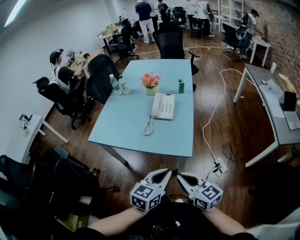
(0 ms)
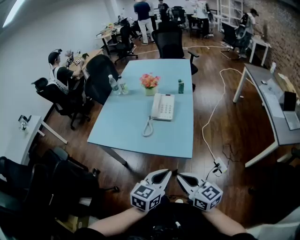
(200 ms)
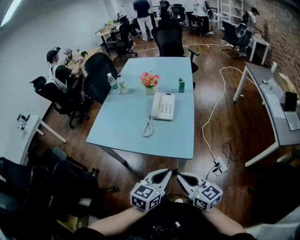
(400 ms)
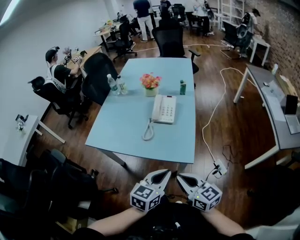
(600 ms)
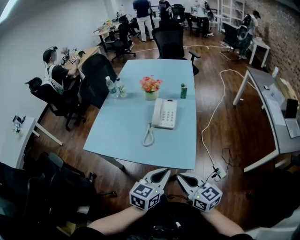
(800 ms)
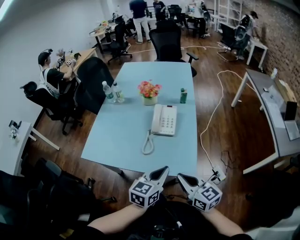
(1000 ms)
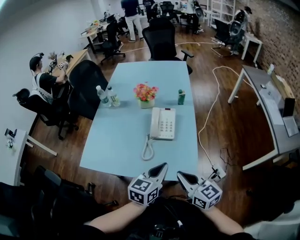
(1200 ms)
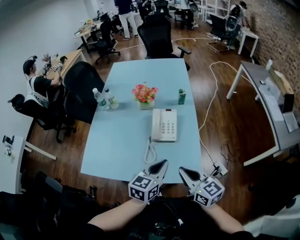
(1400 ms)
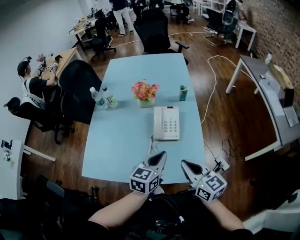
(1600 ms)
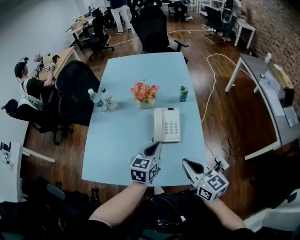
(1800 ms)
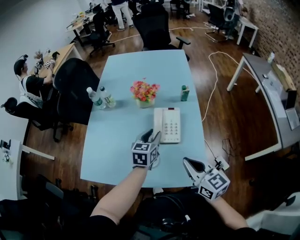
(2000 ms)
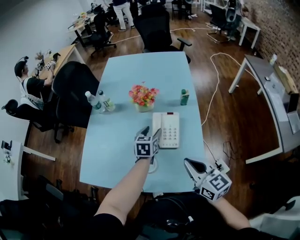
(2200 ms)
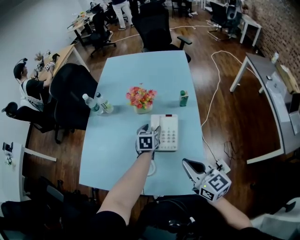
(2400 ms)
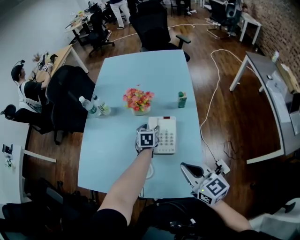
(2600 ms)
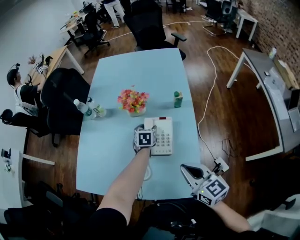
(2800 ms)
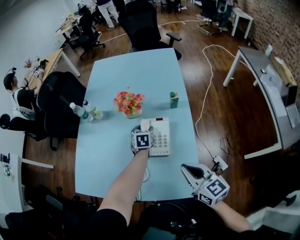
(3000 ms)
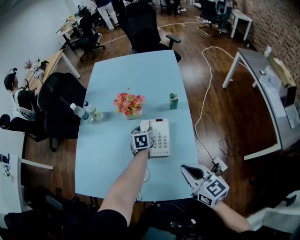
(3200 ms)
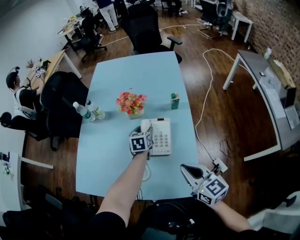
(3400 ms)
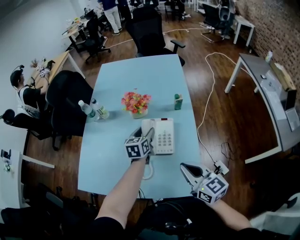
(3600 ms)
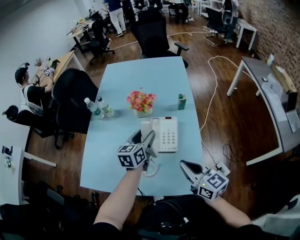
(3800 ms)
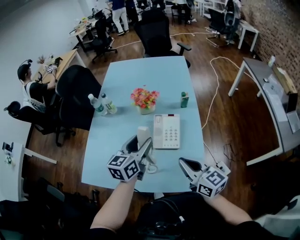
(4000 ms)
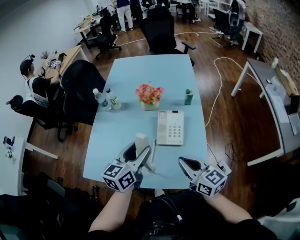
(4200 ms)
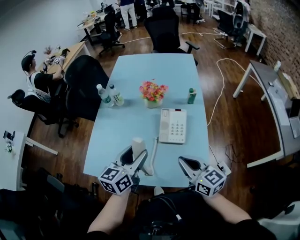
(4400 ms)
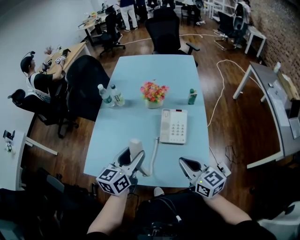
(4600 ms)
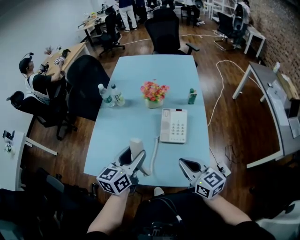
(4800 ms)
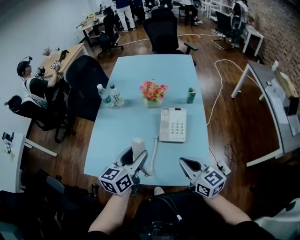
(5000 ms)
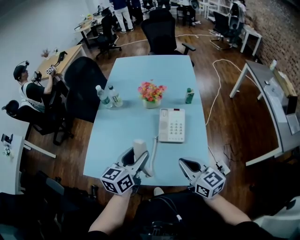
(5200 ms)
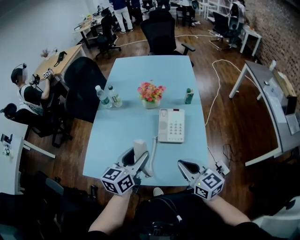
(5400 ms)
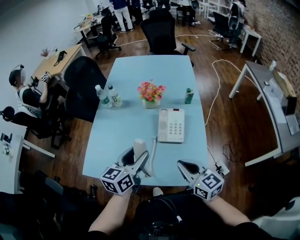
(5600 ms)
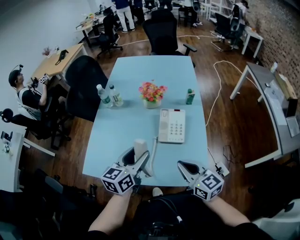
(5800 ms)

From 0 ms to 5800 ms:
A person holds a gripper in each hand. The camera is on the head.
From 0 ms to 1400 ms: The grippers both shift forward by about 25 cm.
From 1400 ms to 2800 ms: The left gripper heads forward and downward, covering some 40 cm, swivels some 30 degrees, and opens its fingers; the right gripper moves forward and to the right, approximately 15 cm.
From 2800 ms to 4400 ms: The left gripper goes roughly 35 cm backward, upward and to the left, and tilts its fingers approximately 30 degrees upward. Meanwhile the right gripper goes some 10 cm to the left.
From 4400 ms to 5800 ms: The grippers make only small movements.

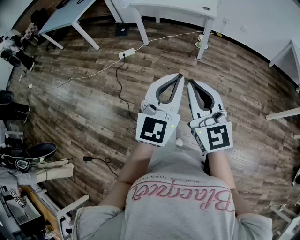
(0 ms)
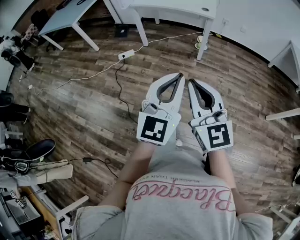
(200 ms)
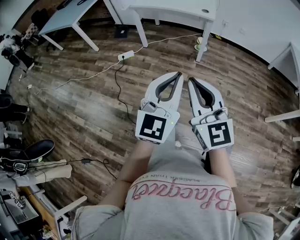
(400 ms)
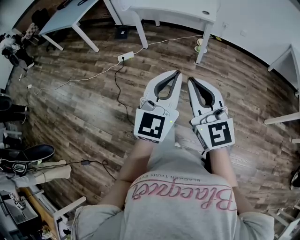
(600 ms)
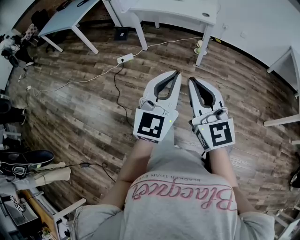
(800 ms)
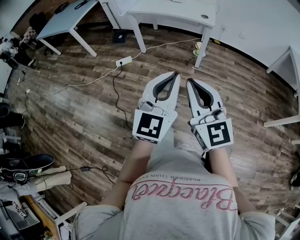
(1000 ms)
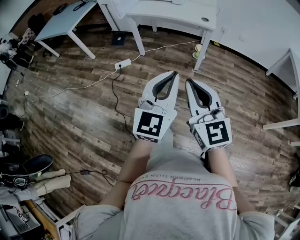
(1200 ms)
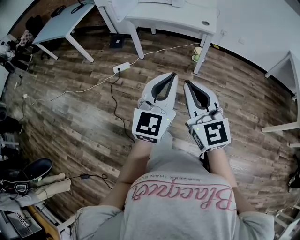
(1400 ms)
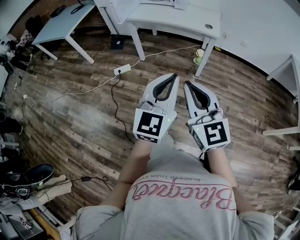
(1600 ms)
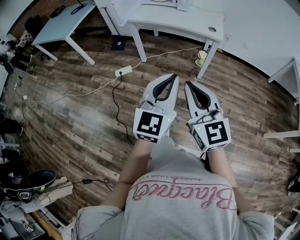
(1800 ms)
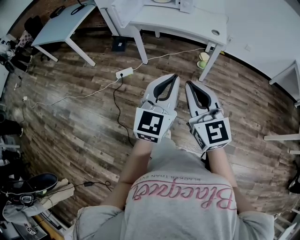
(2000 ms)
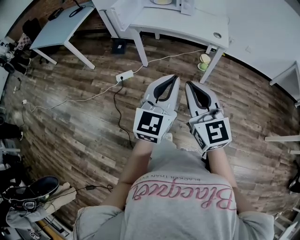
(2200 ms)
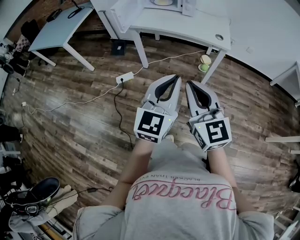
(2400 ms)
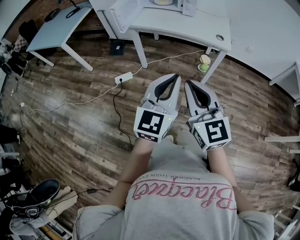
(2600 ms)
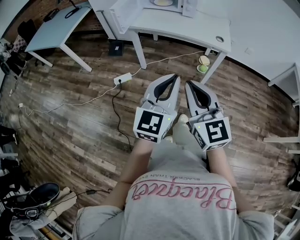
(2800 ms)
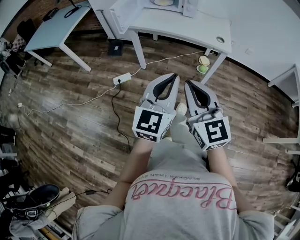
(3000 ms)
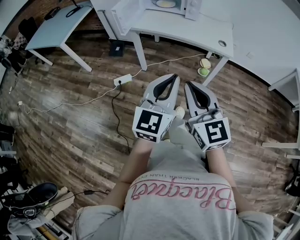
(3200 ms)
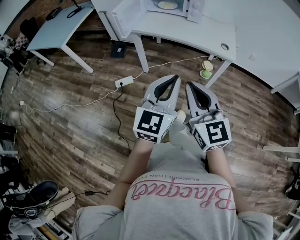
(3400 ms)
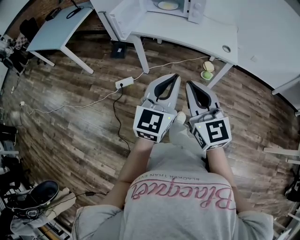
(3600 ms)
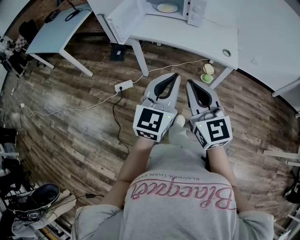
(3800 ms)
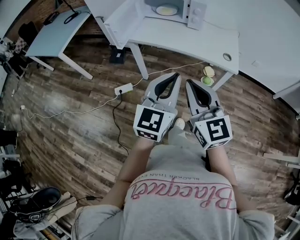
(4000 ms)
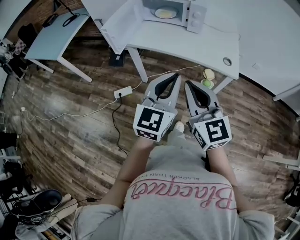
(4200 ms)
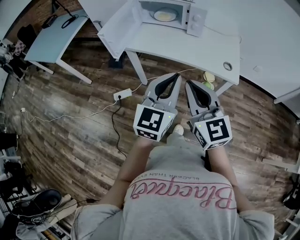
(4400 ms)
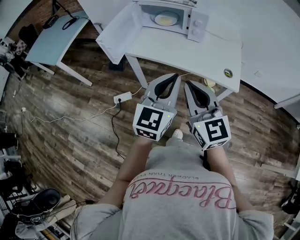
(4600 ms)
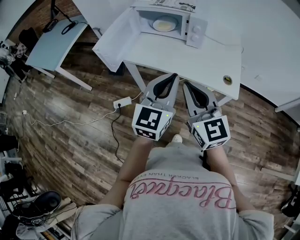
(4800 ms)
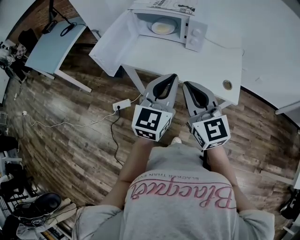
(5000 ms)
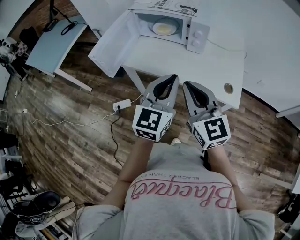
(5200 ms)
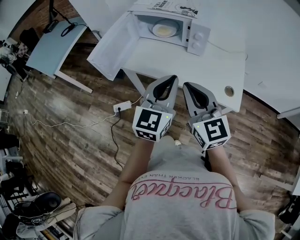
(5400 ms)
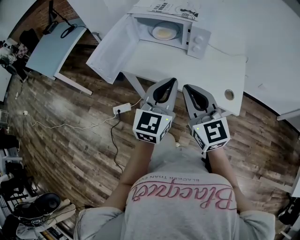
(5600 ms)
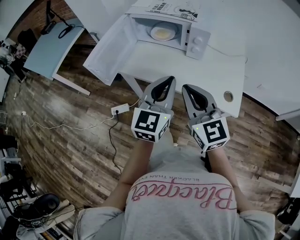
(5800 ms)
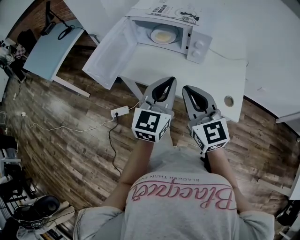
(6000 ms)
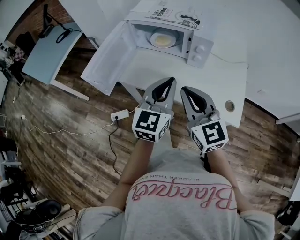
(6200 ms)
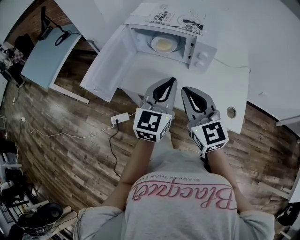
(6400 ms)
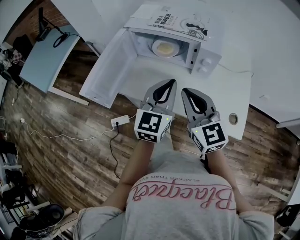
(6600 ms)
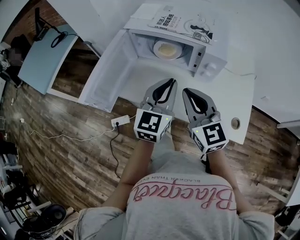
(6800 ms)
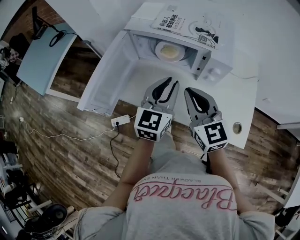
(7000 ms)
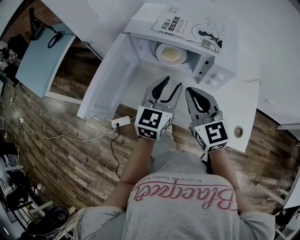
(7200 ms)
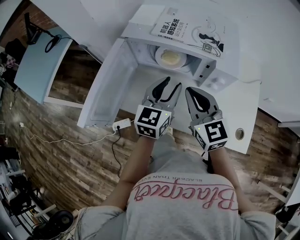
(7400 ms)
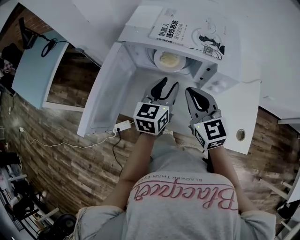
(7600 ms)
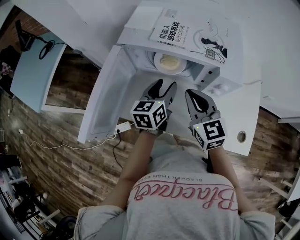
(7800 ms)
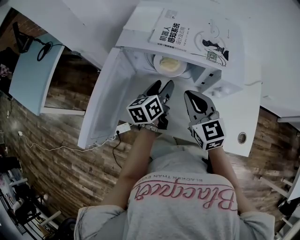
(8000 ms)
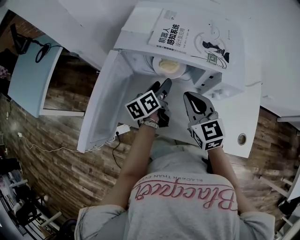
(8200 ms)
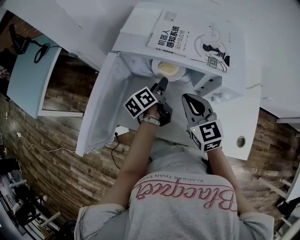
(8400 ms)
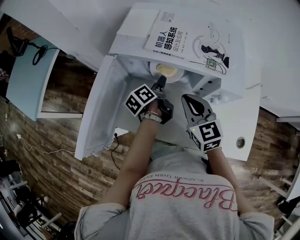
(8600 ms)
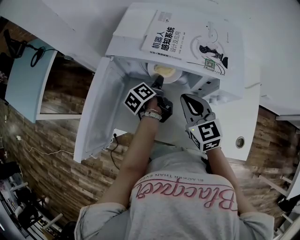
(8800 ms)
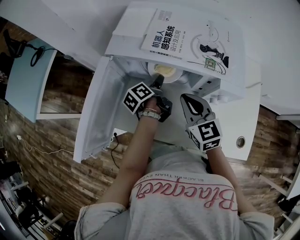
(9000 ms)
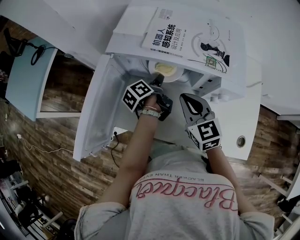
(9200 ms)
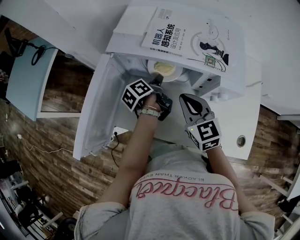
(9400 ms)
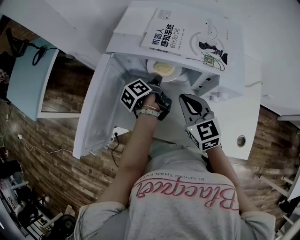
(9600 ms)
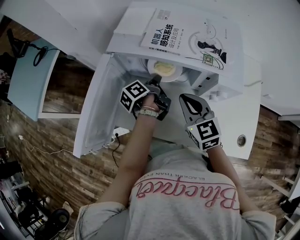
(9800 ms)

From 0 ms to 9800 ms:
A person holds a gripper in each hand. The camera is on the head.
From 0 ms to 1400 ms: Both grippers move forward, roughly 15 cm.
From 1400 ms to 2800 ms: Both grippers travel together forward and to the left, approximately 20 cm.
From 2800 ms to 4200 ms: Both grippers move forward, roughly 20 cm.
From 4200 ms to 5600 ms: Both grippers travel together forward, some 20 cm.
From 5600 ms to 7000 ms: The grippers both shift forward by approximately 20 cm.
From 7000 ms to 8400 ms: The right gripper moves forward and downward, some 15 cm, while the left gripper travels forward and downward by approximately 25 cm, rotates around the line of its fingers by about 60 degrees, counterclockwise from behind, and opens its fingers.
From 8400 ms to 9800 ms: The left gripper closes.

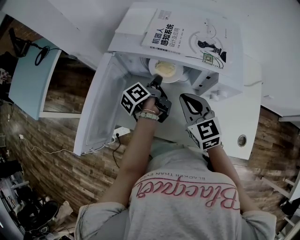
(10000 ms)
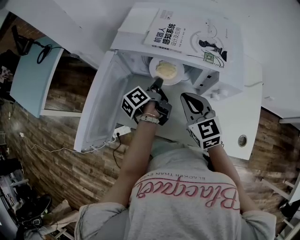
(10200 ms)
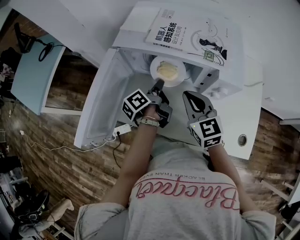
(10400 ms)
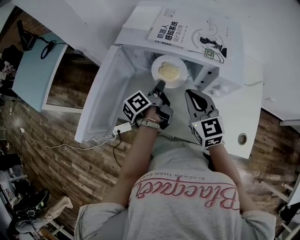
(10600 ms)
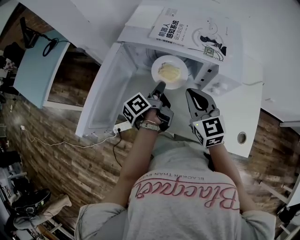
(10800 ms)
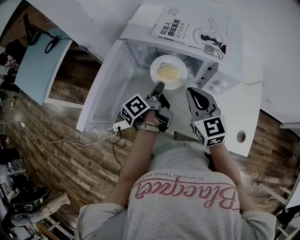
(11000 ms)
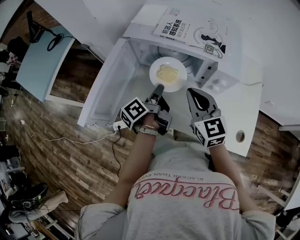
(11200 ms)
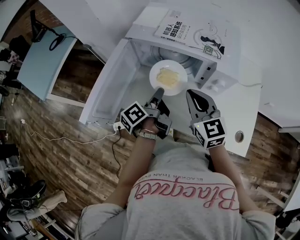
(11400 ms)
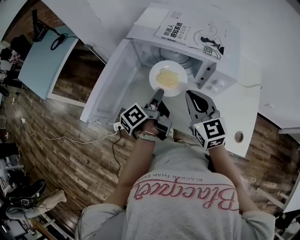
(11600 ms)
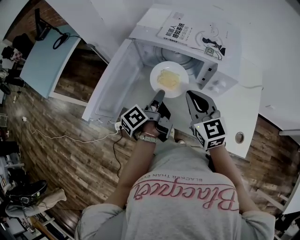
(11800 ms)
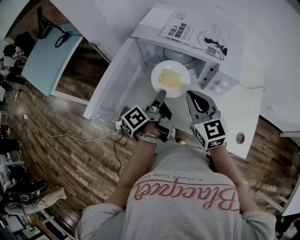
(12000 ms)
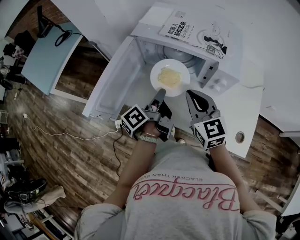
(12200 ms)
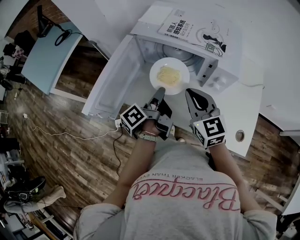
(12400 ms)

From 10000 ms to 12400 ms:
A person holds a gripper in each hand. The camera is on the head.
From 10000 ms to 11200 ms: The right gripper ends up some 5 cm from where it was; the left gripper moves backward and upward, approximately 10 cm.
From 11200 ms to 12400 ms: The left gripper changes place by roughly 5 cm.

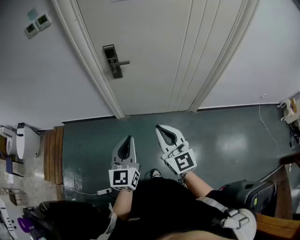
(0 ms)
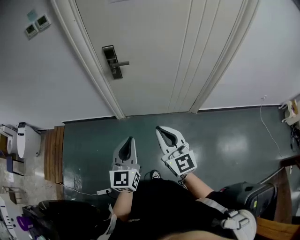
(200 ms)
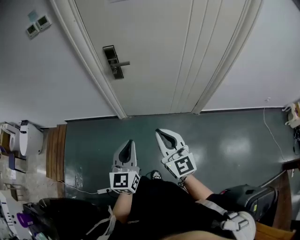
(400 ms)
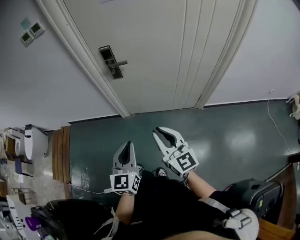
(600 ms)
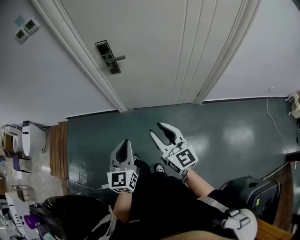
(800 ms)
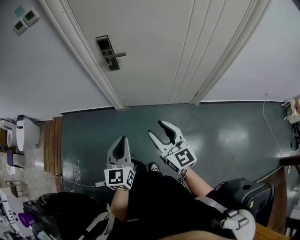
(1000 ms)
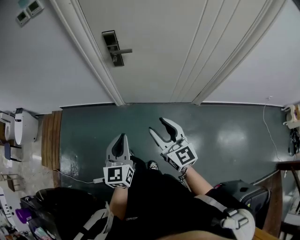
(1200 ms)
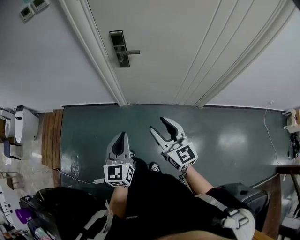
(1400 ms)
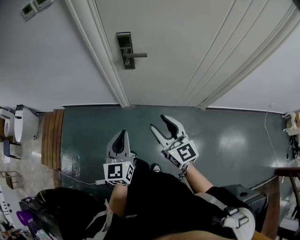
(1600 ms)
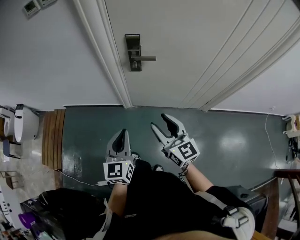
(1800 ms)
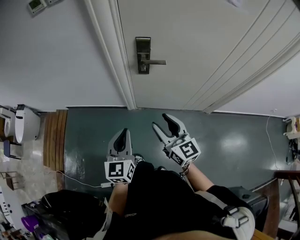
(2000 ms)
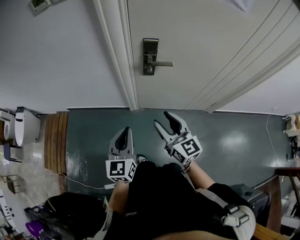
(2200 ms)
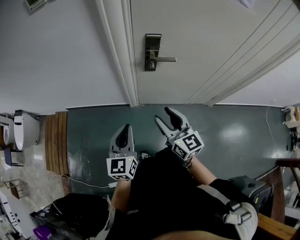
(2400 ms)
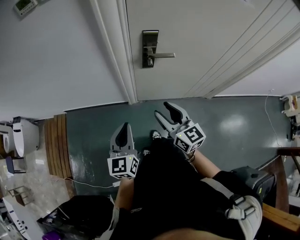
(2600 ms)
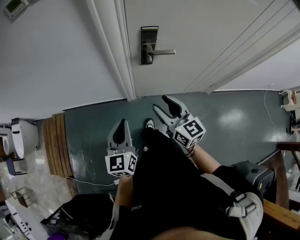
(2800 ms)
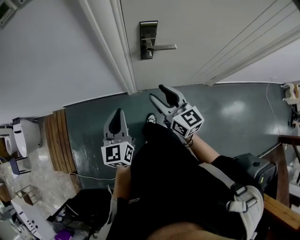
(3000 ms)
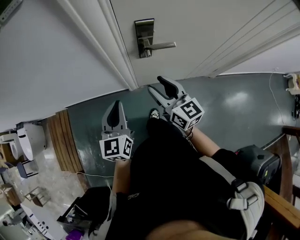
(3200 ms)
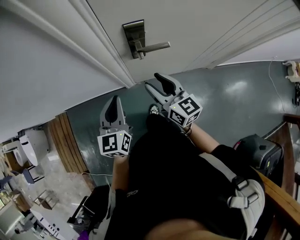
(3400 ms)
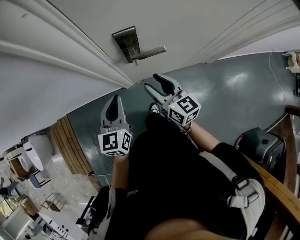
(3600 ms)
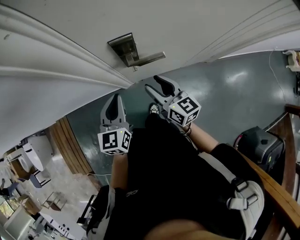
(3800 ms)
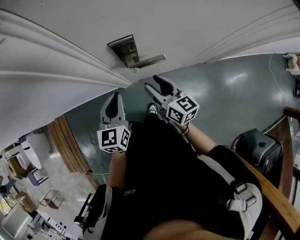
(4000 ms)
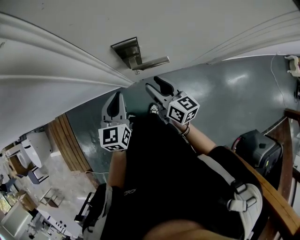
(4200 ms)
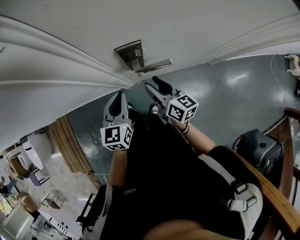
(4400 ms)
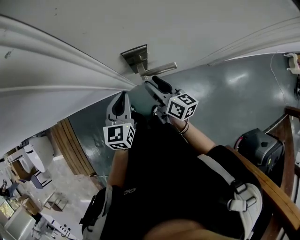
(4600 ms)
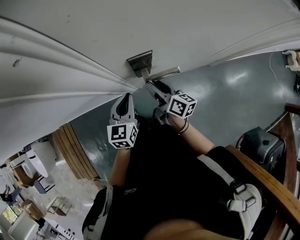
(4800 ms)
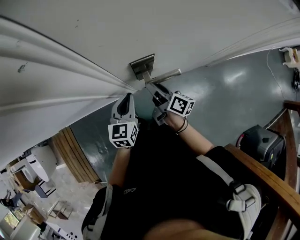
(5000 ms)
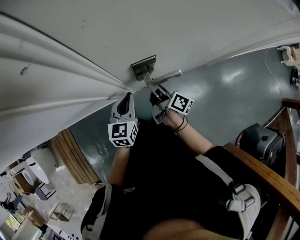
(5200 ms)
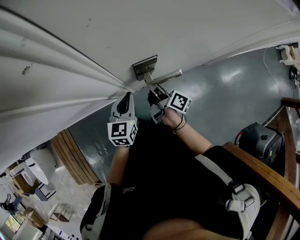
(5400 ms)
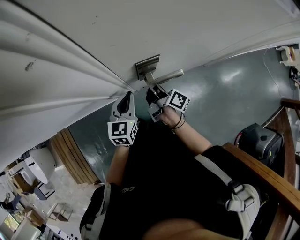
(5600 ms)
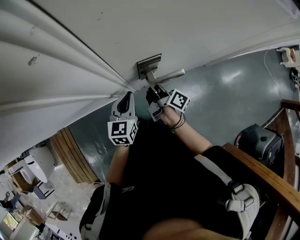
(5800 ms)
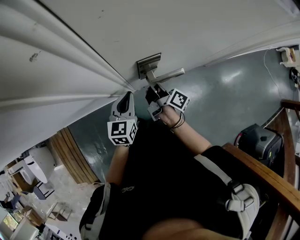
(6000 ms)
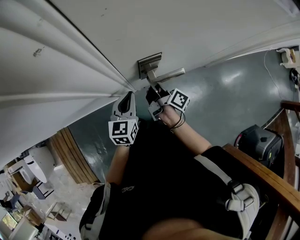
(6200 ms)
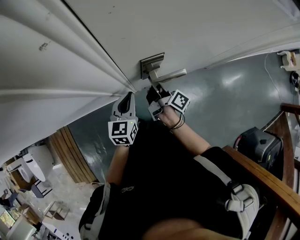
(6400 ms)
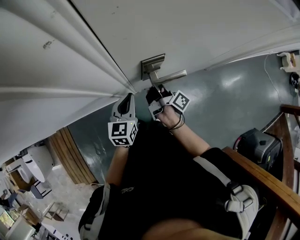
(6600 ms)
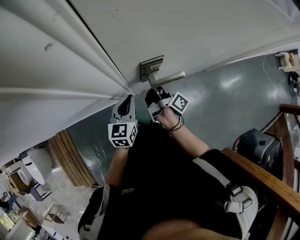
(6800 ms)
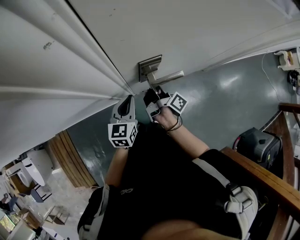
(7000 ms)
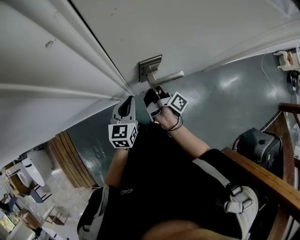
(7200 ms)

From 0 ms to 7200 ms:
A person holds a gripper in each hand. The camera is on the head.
From 0 ms to 1400 ms: The two grippers go some 10 cm forward and downward. The right gripper opens its fingers.
From 1400 ms to 2800 ms: The grippers both shift forward and to the left by some 25 cm.
From 2800 ms to 4400 ms: The left gripper shifts approximately 25 cm forward. The right gripper travels forward and downward by roughly 25 cm, and turns by roughly 30 degrees.
From 4400 ms to 5800 ms: The left gripper moves about 5 cm; the right gripper moves forward, about 5 cm, rolls clockwise, seen from behind, by some 40 degrees, and closes its fingers.
From 5800 ms to 7200 ms: The grippers stay close to where they were, moving slightly.
